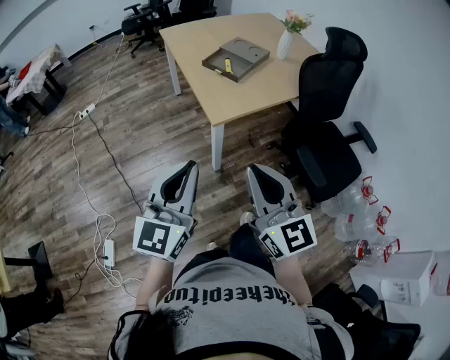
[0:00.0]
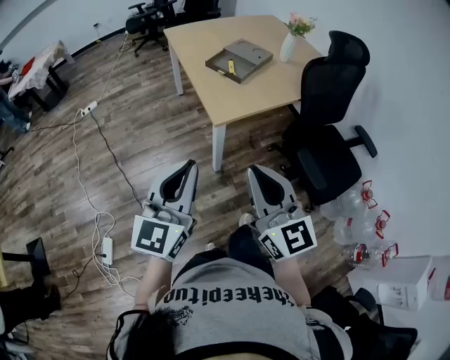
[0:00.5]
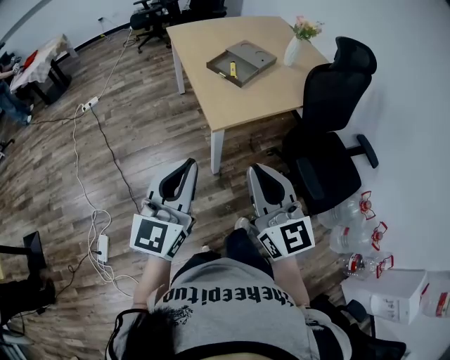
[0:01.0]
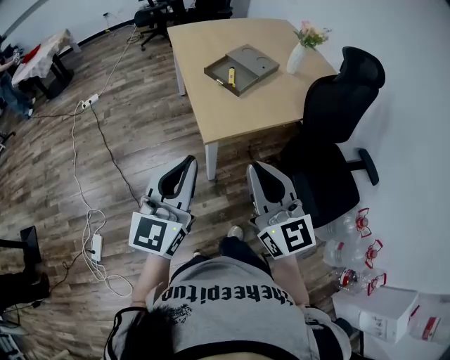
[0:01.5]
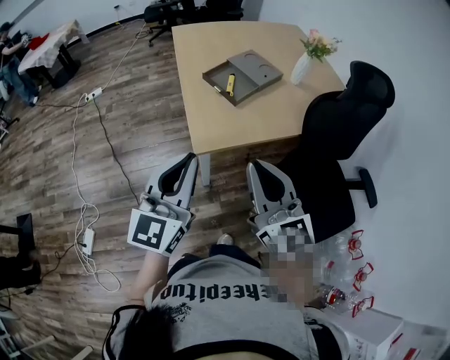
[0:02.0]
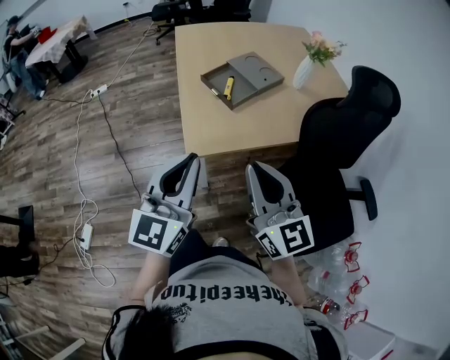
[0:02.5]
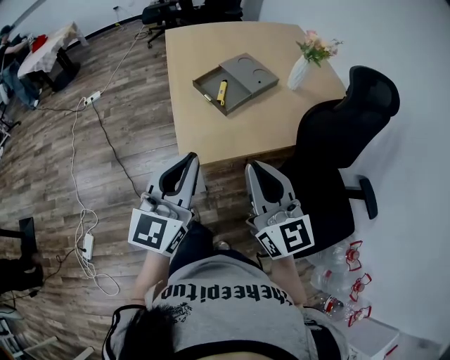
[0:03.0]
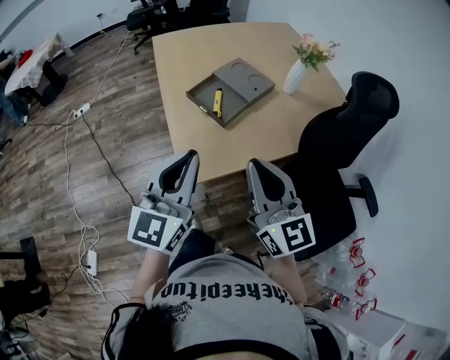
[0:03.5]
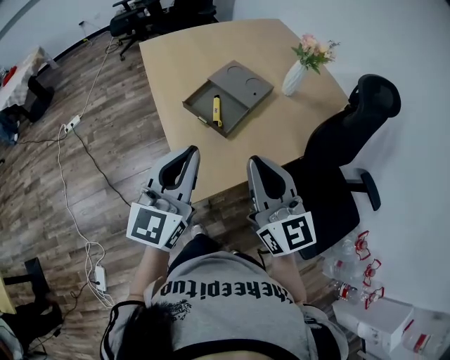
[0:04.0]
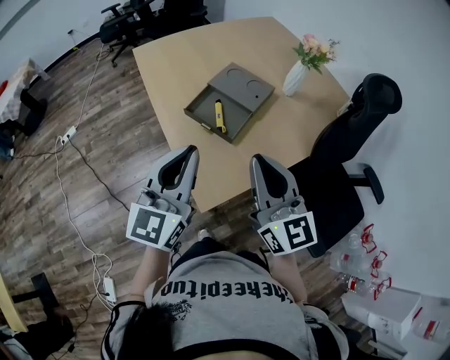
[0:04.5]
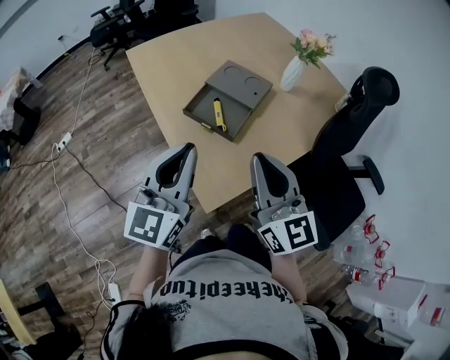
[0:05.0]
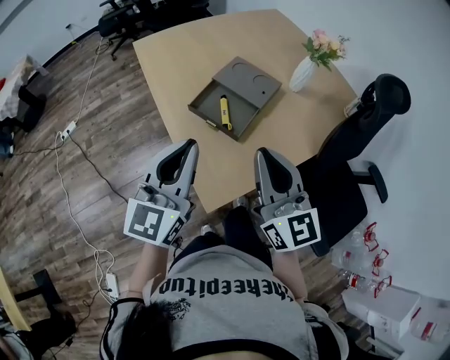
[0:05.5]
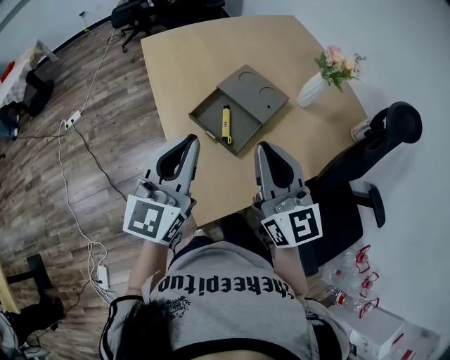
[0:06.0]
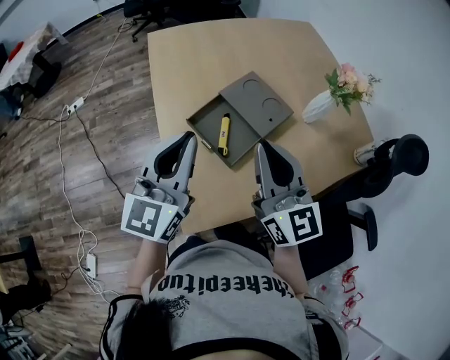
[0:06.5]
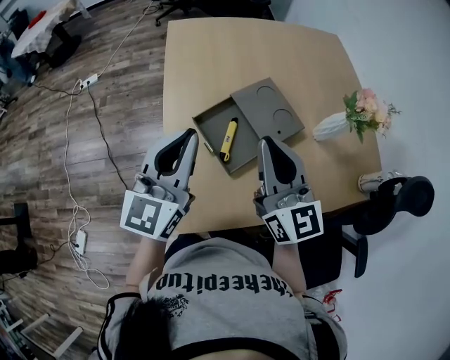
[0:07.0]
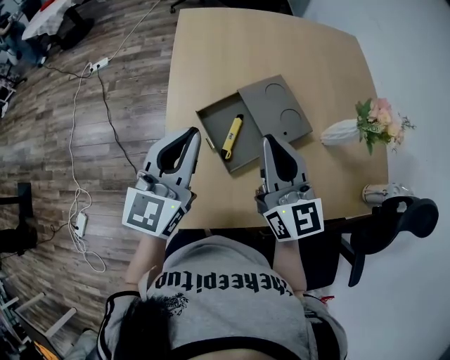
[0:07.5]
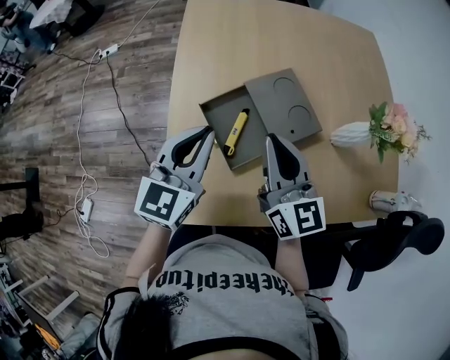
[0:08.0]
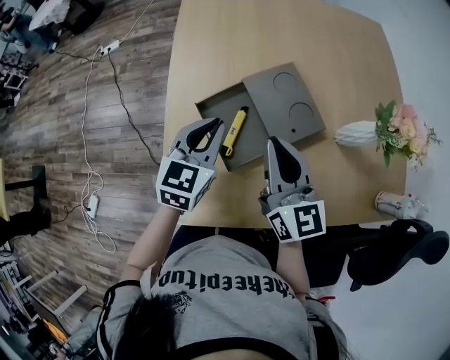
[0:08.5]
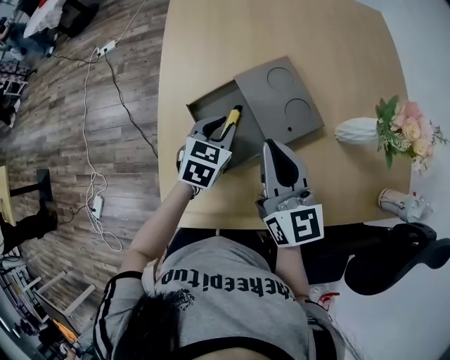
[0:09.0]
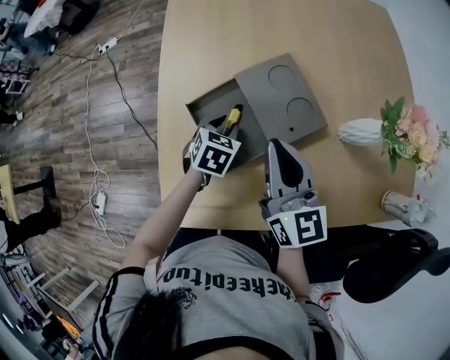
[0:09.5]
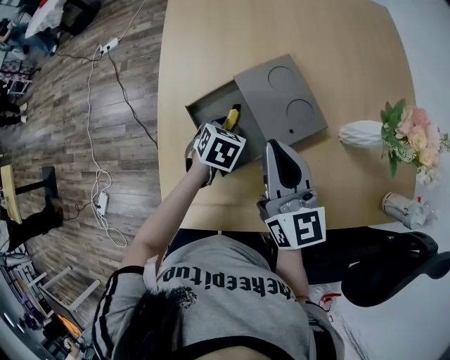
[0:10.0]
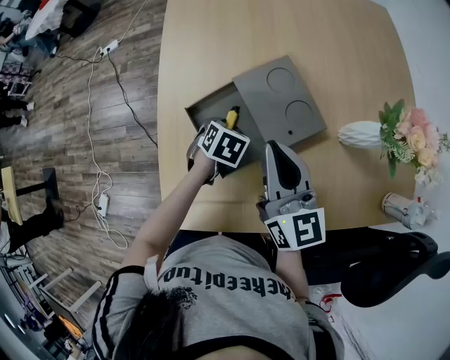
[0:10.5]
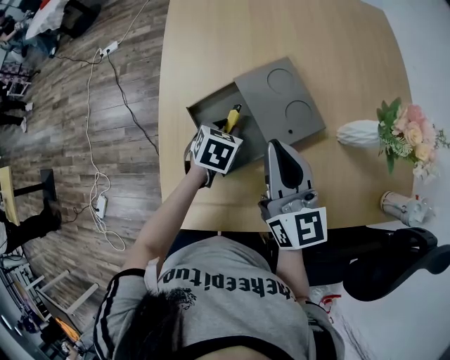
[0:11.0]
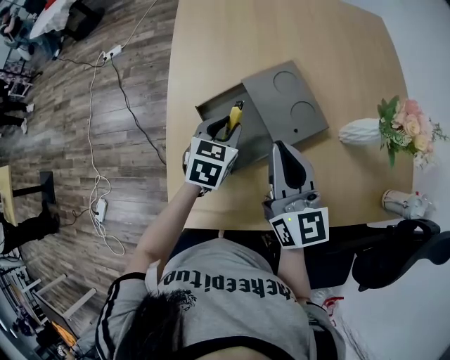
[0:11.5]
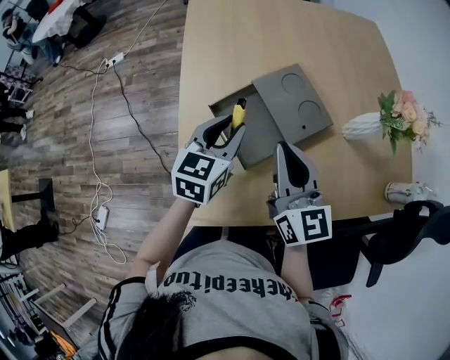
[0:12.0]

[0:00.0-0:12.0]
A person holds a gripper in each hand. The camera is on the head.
0:00.0 to 0:02.0: Both grippers move forward and to the right, roughly 20 cm.
0:02.0 to 0:04.0: Both grippers travel together forward, roughly 20 cm.
0:04.0 to 0:06.0: The two grippers go about 15 cm forward.
0:06.0 to 0:08.0: The right gripper goes about 20 cm forward and downward, and rotates approximately 20 degrees, while the left gripper is displaced forward, downward and to the right by approximately 15 cm, and changes its angle by some 20 degrees.
0:08.0 to 0:10.0: The right gripper shifts some 5 cm downward, while the left gripper moves downward, approximately 25 cm, tips its fingers downward by approximately 50 degrees, and opens.
0:10.0 to 0:12.0: The right gripper is displaced backward by about 5 cm; the left gripper goes approximately 20 cm upward, and tips its fingers upward by roughly 40 degrees.

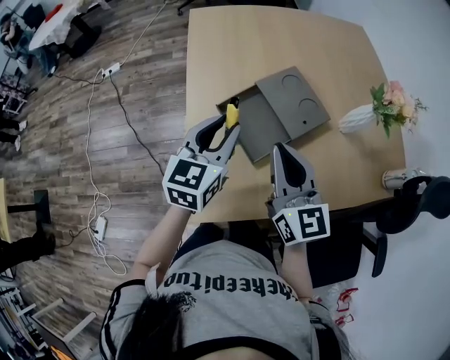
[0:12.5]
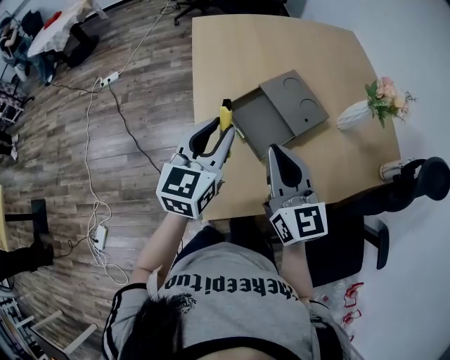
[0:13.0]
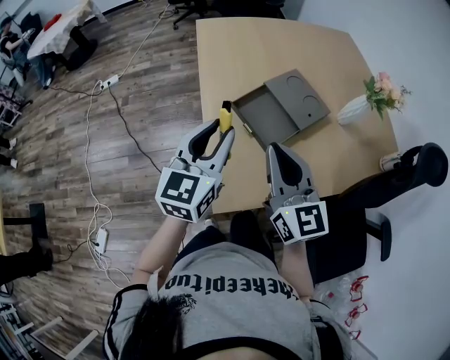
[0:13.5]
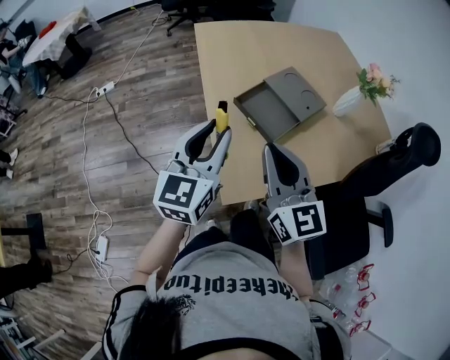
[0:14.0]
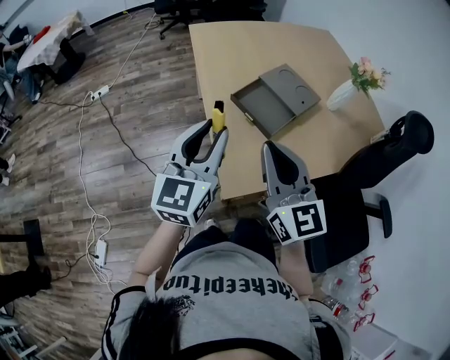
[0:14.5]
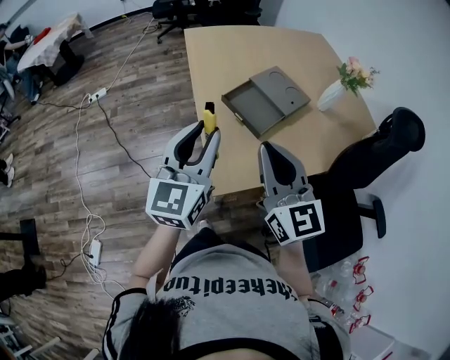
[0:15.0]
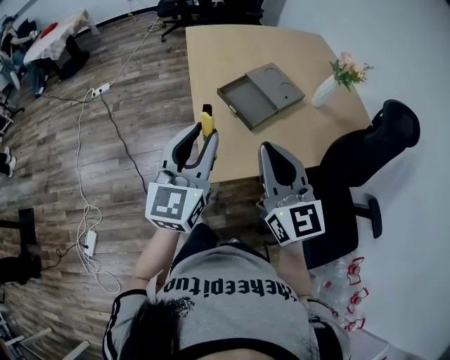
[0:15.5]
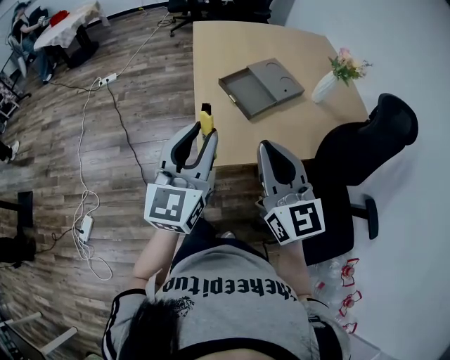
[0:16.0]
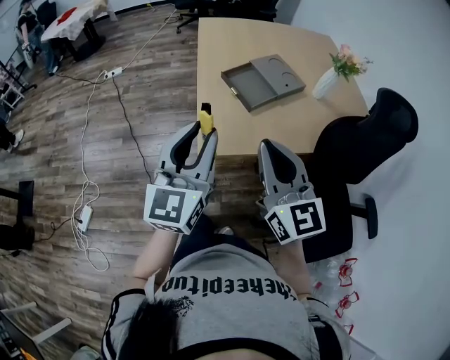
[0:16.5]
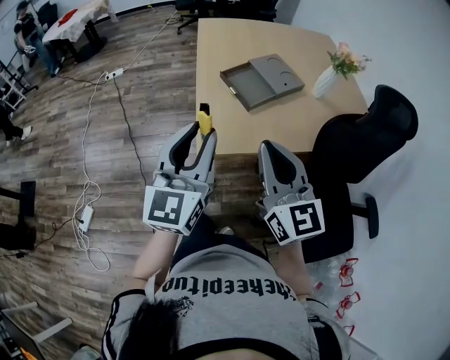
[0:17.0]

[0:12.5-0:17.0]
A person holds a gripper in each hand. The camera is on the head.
0:12.5 to 0:14.5: The right gripper goes some 20 cm backward and to the left. The left gripper shifts approximately 20 cm backward, to the left and upward.
0:14.5 to 0:17.0: The right gripper moves backward and to the right, approximately 20 cm, while the left gripper moves backward, roughly 20 cm.

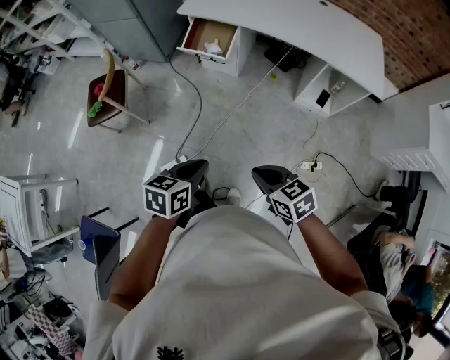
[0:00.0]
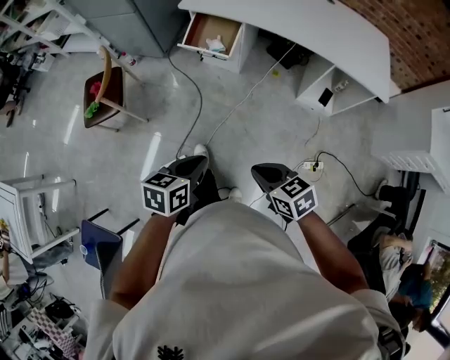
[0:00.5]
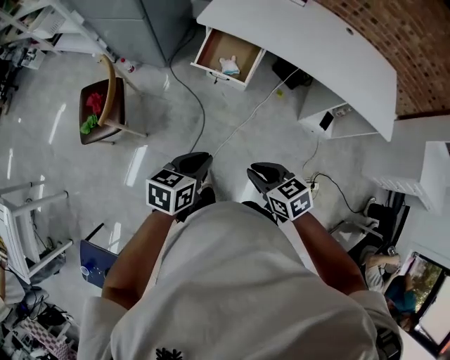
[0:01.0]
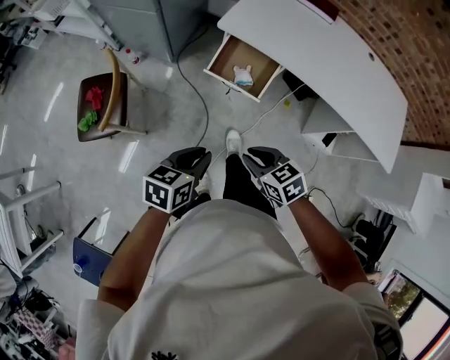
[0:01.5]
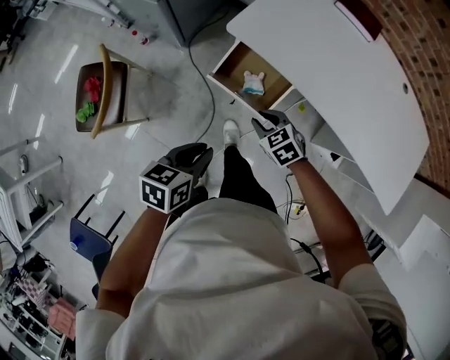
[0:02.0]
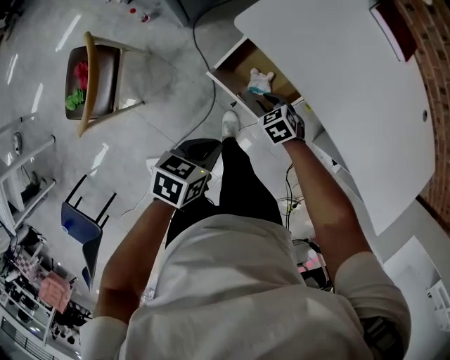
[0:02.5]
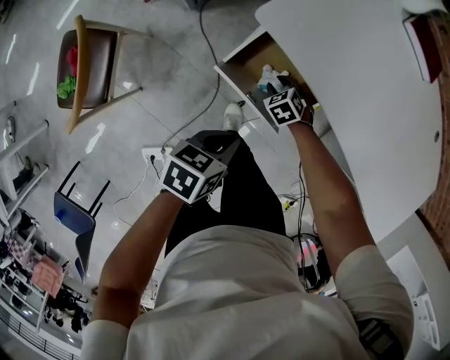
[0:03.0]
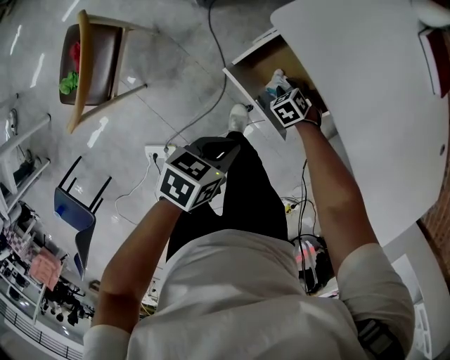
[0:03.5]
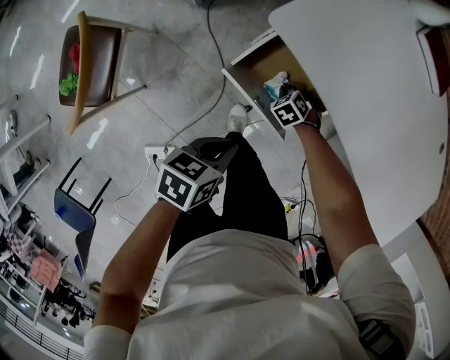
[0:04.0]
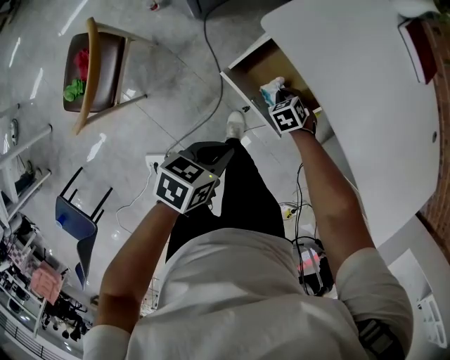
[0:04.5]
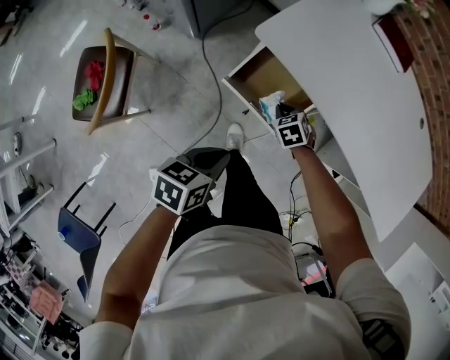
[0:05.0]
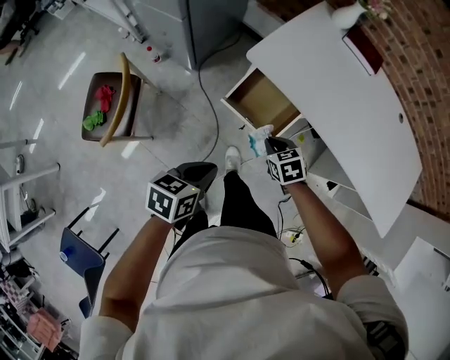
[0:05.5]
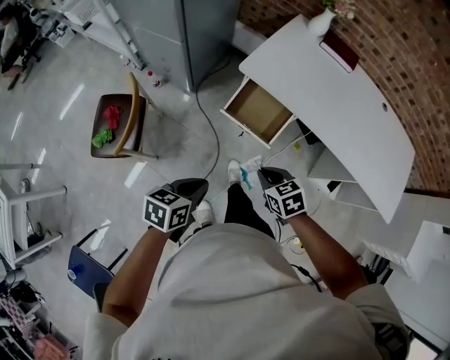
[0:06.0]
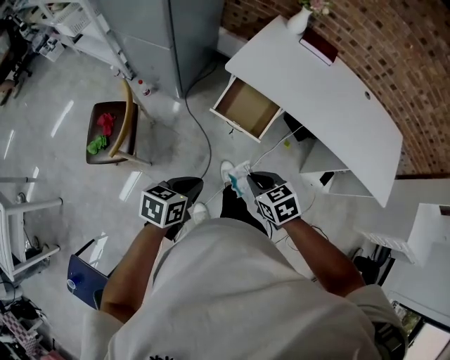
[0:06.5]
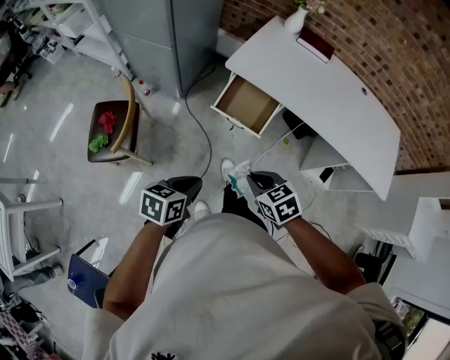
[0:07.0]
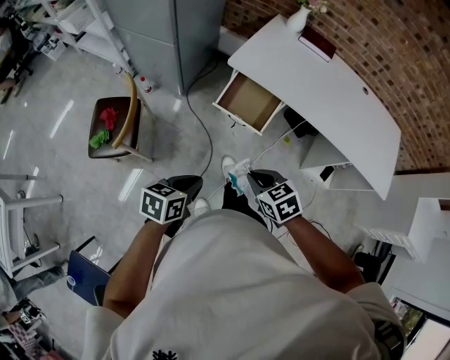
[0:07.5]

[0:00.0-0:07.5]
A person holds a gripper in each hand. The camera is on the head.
0:00.0 to 0:02.0: Both grippers are carried forward, some 70 cm. The right gripper rotates roughly 30 degrees, and opens.
0:02.0 to 0:04.0: The right gripper heads downward, covering approximately 30 cm, and turns by approximately 30 degrees, while the left gripper moves downward, about 20 cm.
0:04.0 to 0:05.5: The right gripper travels upward by approximately 30 cm, and changes its angle by roughly 30 degrees, while the left gripper goes roughly 20 cm upward.
0:05.5 to 0:07.5: The left gripper is displaced backward by roughly 20 cm. The right gripper heads backward and upward, covering roughly 35 cm.

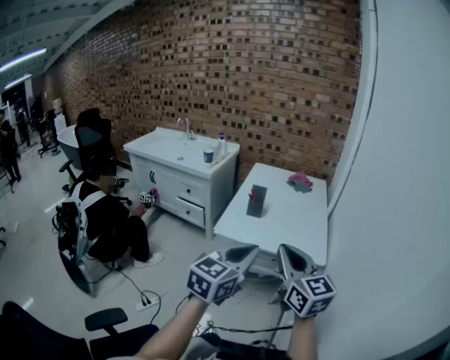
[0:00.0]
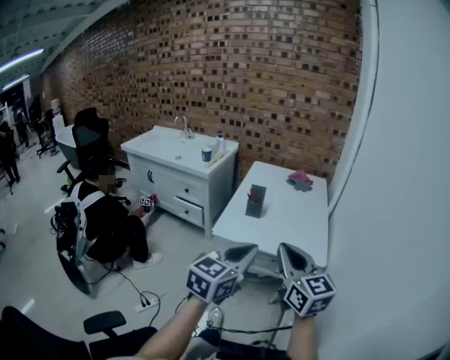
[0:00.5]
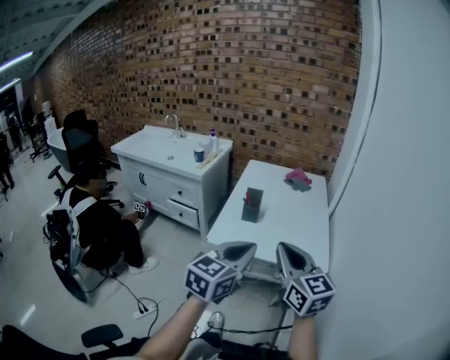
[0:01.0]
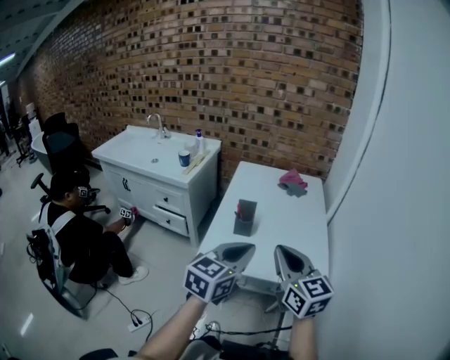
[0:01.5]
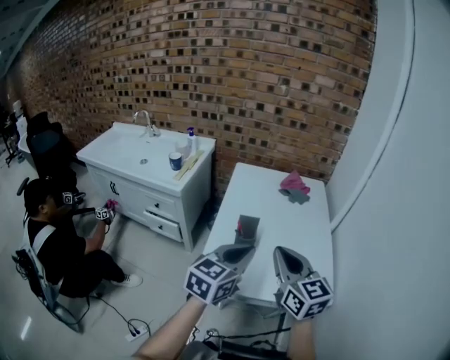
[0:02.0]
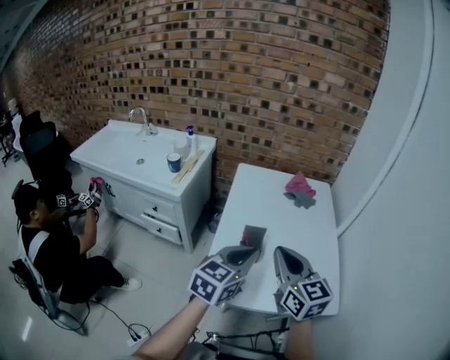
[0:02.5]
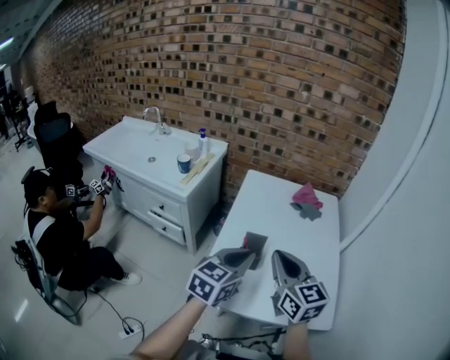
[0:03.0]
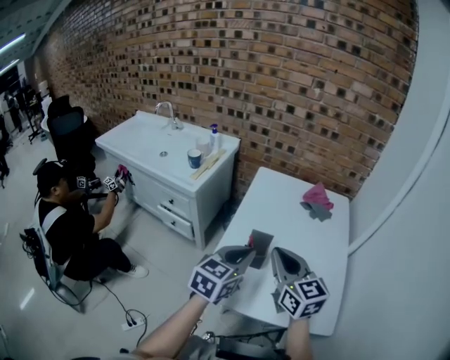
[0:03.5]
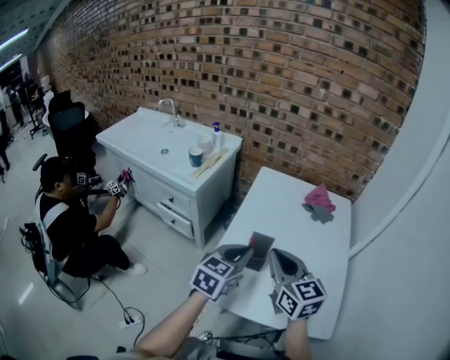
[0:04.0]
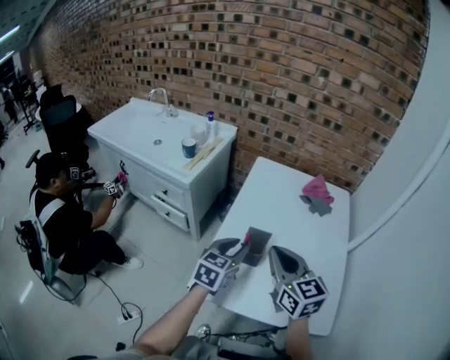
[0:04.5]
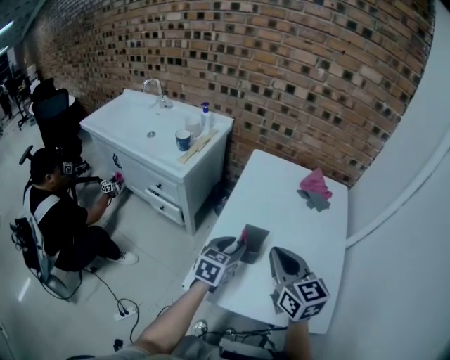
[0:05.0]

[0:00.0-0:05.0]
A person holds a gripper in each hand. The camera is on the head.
0:00.0 to 0:02.5: The two grippers go about 40 cm forward.
0:02.5 to 0:05.0: The right gripper moves forward, about 5 cm, while the left gripper travels downward and forward by roughly 15 cm, changes its angle by about 20 degrees, and opens its fingers.
